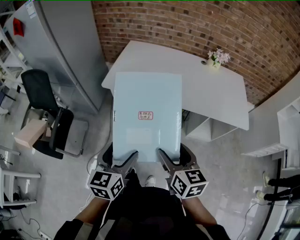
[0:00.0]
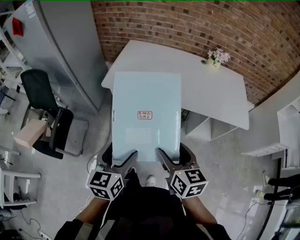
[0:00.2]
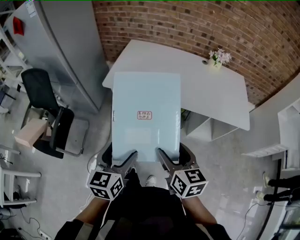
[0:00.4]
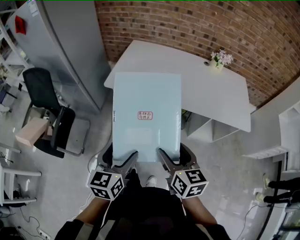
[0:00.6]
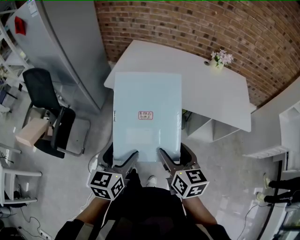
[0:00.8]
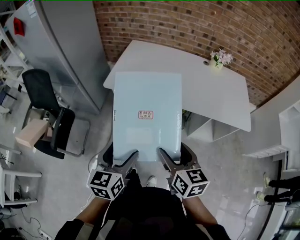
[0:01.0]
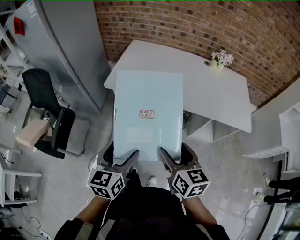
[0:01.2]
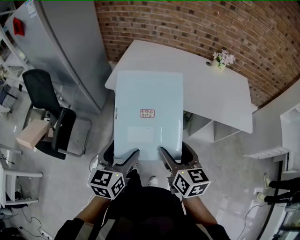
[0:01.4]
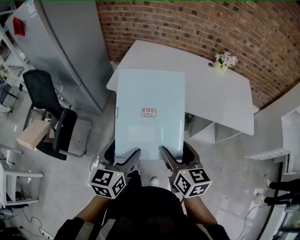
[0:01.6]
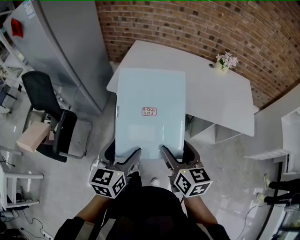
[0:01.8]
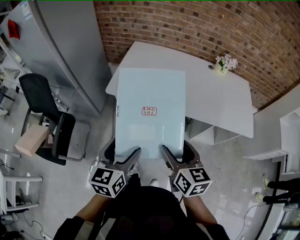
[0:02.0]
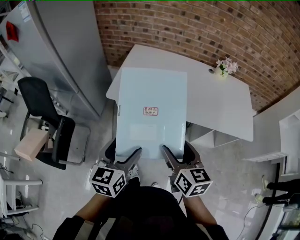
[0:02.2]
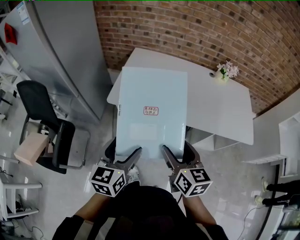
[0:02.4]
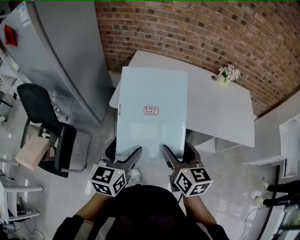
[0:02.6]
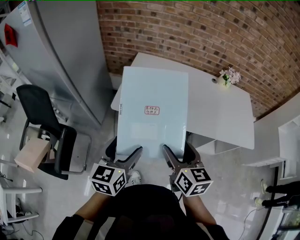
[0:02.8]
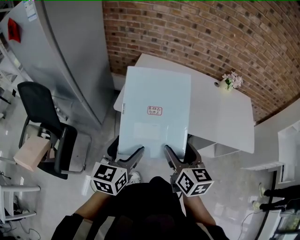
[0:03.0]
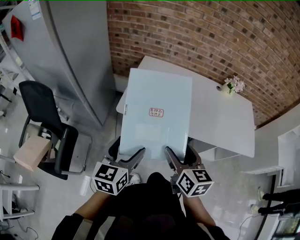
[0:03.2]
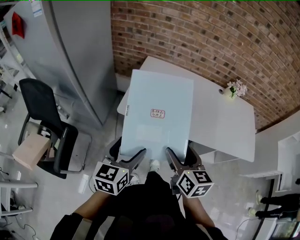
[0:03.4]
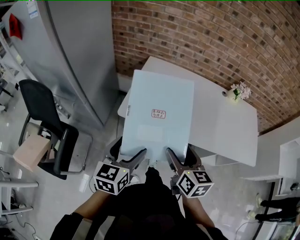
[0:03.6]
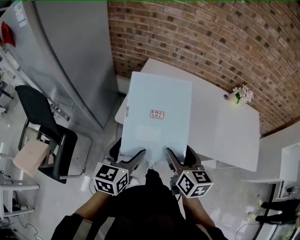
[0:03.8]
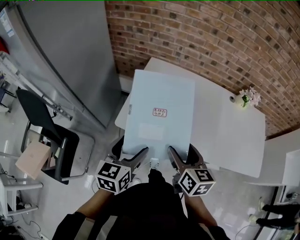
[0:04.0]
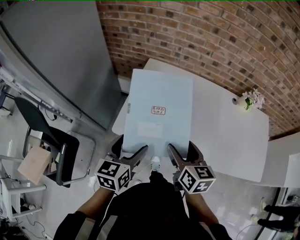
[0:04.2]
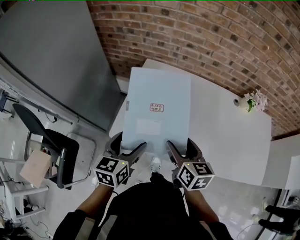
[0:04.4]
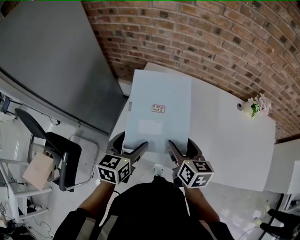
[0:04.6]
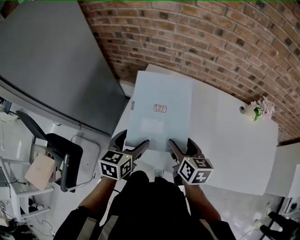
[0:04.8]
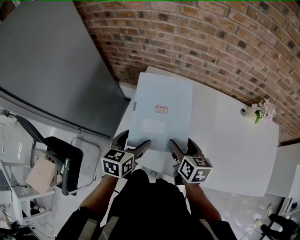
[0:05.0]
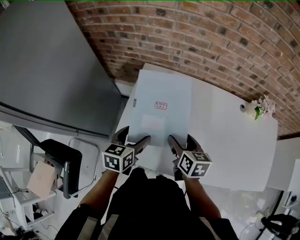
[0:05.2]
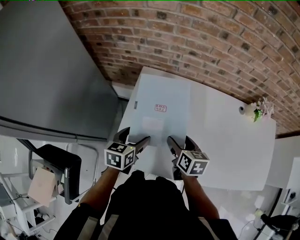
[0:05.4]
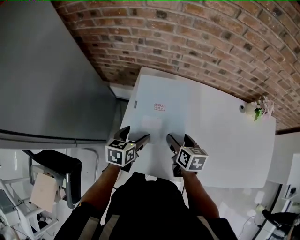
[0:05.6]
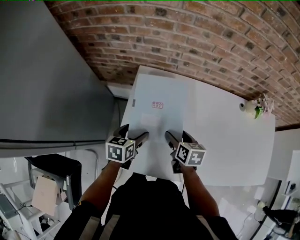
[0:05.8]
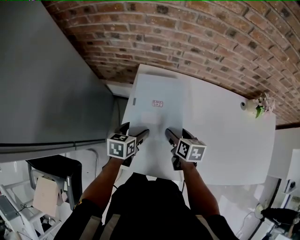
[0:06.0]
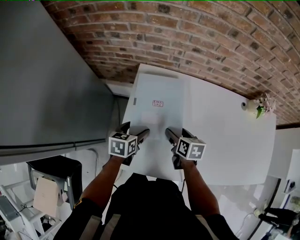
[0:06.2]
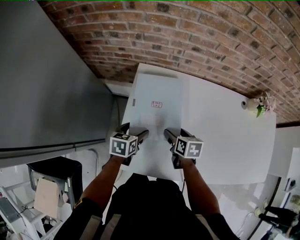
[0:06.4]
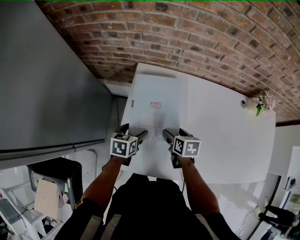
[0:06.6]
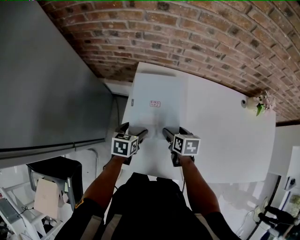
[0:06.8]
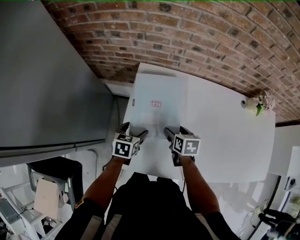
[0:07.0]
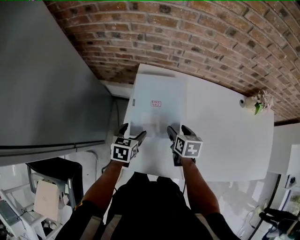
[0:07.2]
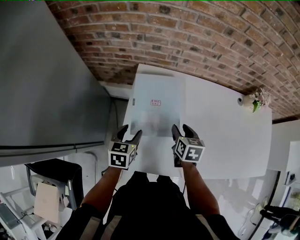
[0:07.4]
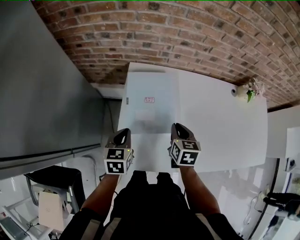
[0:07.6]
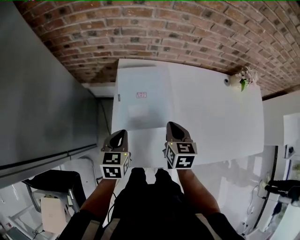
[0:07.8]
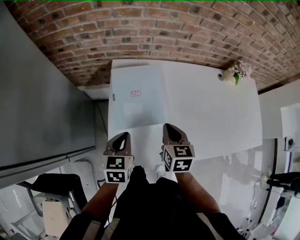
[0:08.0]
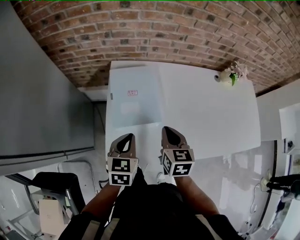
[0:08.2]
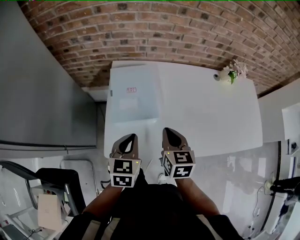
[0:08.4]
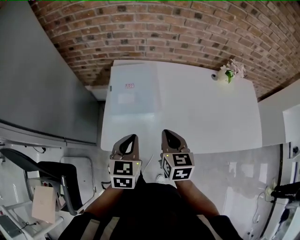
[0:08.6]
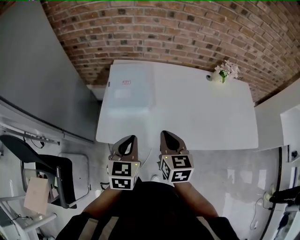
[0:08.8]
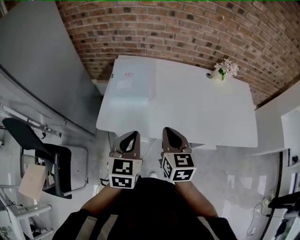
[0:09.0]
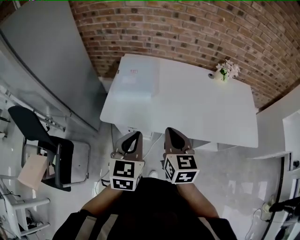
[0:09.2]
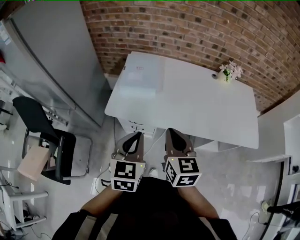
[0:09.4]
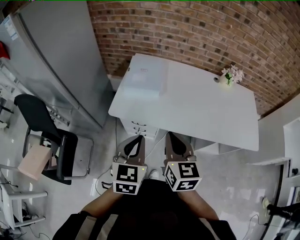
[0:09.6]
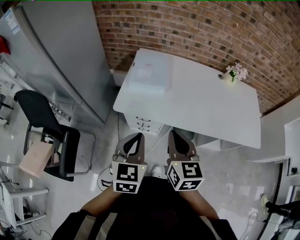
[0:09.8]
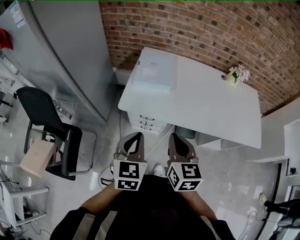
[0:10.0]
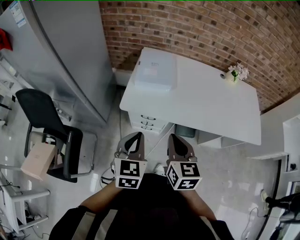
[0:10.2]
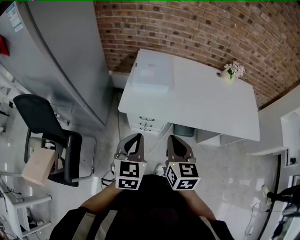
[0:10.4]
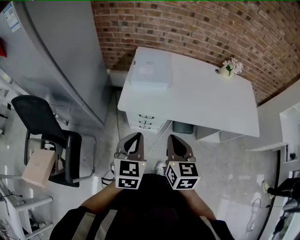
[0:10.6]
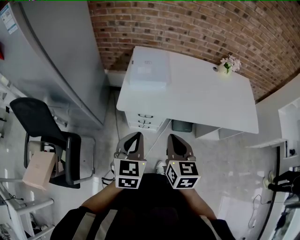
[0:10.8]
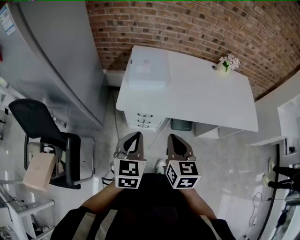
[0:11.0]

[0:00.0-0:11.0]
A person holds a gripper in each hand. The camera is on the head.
0:00.0 to 0:01.6: The grippers move only a little.
0:01.6 to 0:03.2: The grippers both shift forward and to the left by some 20 cm.
0:03.2 to 0:04.8: Both grippers move forward, some 30 cm.
0:04.8 to 0:06.2: The two grippers go some 20 cm downward and forward.
0:06.2 to 0:07.8: The left gripper heads upward and backward, covering about 10 cm, and closes its fingers. The right gripper is displaced upward by some 10 cm, rotates about 20 degrees, and closes its fingers.
0:07.8 to 0:09.4: The right gripper goes roughly 35 cm backward and upward, and rotates some 20 degrees; the left gripper shifts some 40 cm backward, to the right and upward, and changes its angle by approximately 20 degrees.
0:09.4 to 0:11.0: The left gripper travels to the left by approximately 10 cm; the right gripper heads to the left and backward, covering approximately 10 cm.

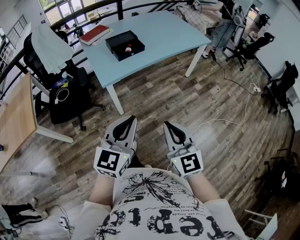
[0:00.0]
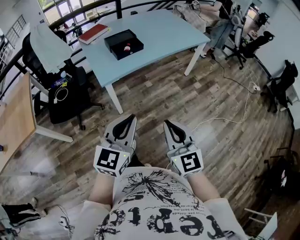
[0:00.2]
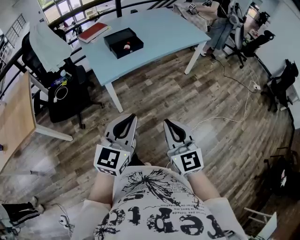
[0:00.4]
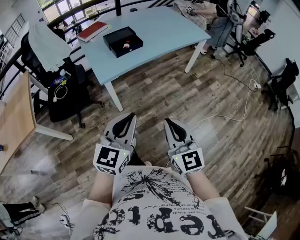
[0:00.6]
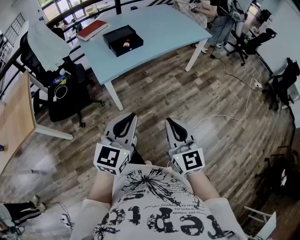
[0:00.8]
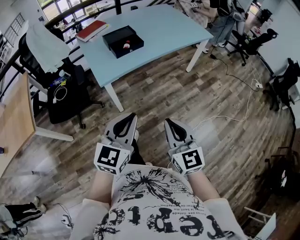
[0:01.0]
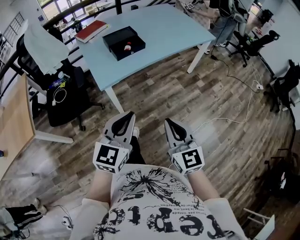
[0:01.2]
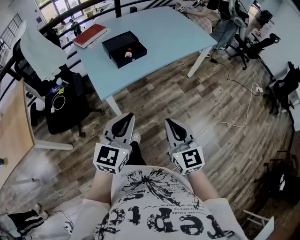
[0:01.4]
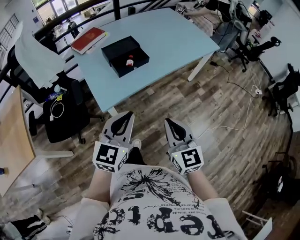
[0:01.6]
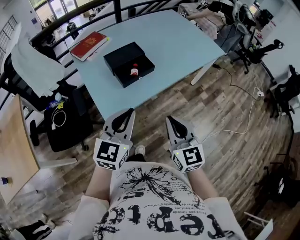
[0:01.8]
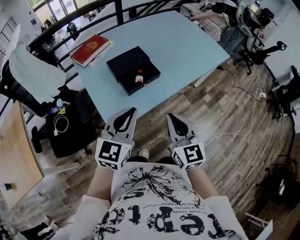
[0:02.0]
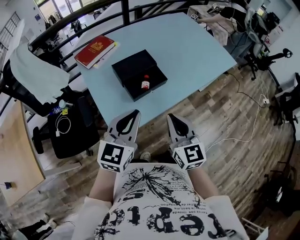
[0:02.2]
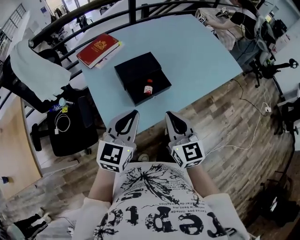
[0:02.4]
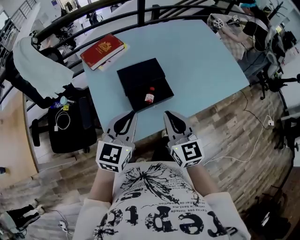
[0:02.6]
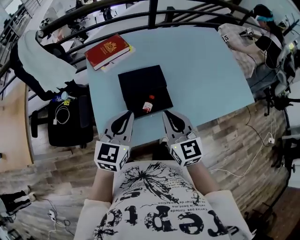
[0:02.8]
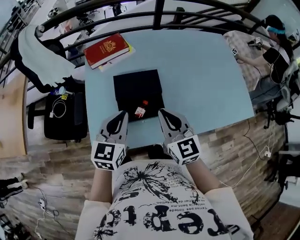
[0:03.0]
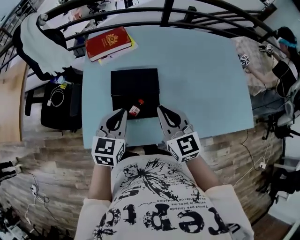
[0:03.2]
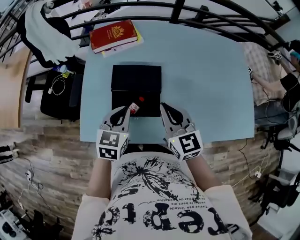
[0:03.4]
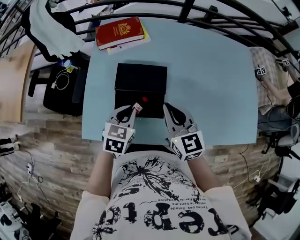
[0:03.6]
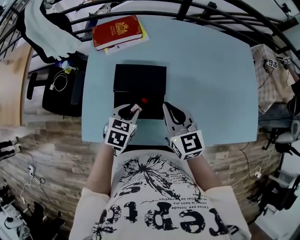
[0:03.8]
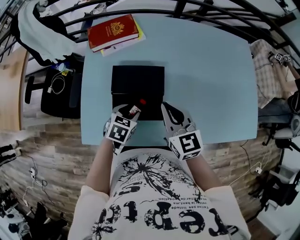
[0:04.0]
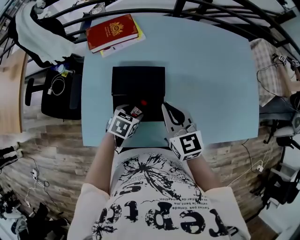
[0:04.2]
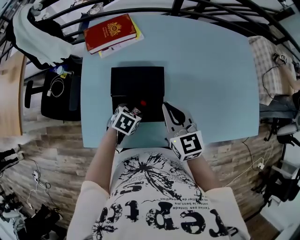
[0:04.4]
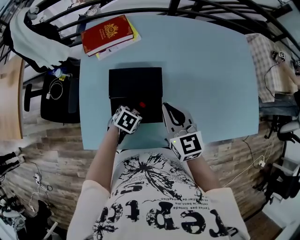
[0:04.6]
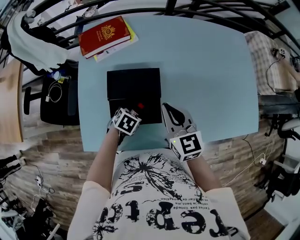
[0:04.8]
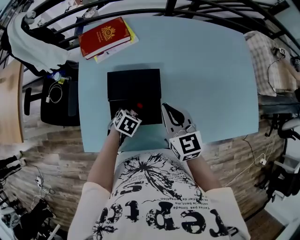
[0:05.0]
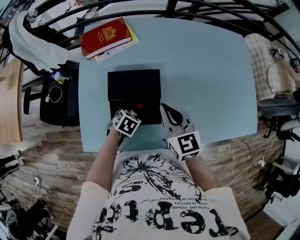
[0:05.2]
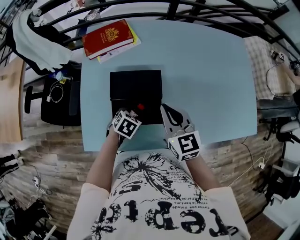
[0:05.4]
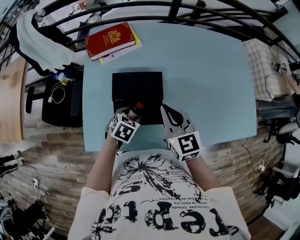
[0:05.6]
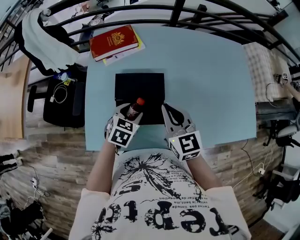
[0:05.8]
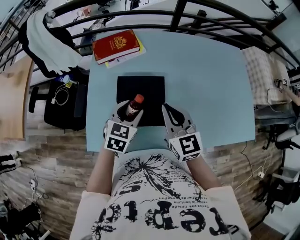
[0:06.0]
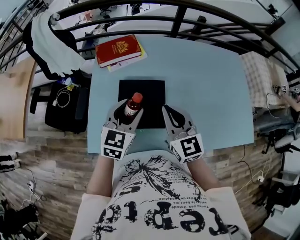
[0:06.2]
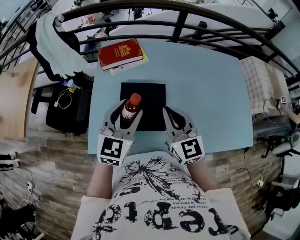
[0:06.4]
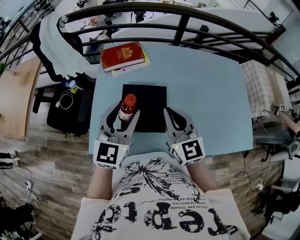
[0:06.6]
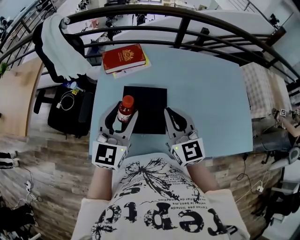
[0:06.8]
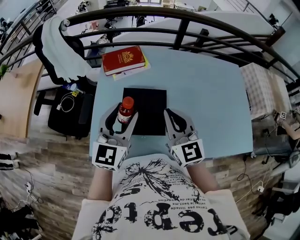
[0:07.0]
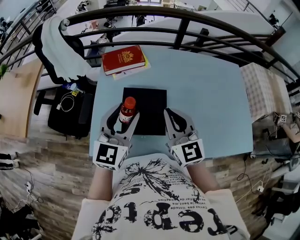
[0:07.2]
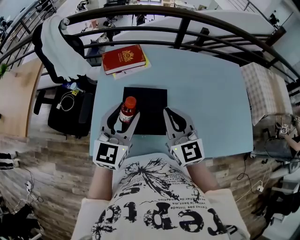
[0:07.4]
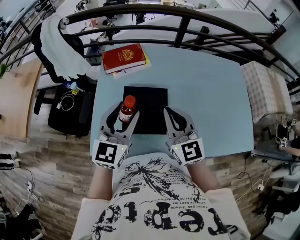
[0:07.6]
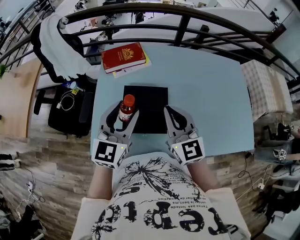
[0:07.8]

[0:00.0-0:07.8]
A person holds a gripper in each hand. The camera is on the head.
0:00.0 to 0:01.6: Both grippers travel together forward, some 25 cm.
0:01.6 to 0:03.2: The pair of grippers is taken about 40 cm. The right gripper changes its angle by approximately 30 degrees, while the left gripper rotates approximately 40 degrees.
0:03.2 to 0:04.6: The right gripper moves forward, approximately 5 cm, while the left gripper shifts approximately 20 cm downward, tips its fingers downward by about 40 degrees, and opens up.
0:04.6 to 0:06.2: The left gripper is displaced upward by some 25 cm, and angles its fingers upward, by some 40 degrees. Meanwhile the right gripper moves upward, some 10 cm.
0:06.2 to 0:07.8: The left gripper heads upward, covering some 10 cm.

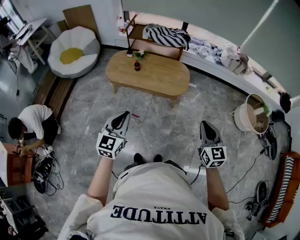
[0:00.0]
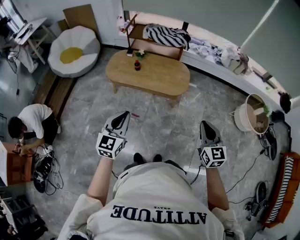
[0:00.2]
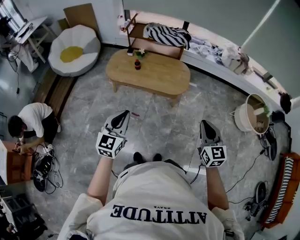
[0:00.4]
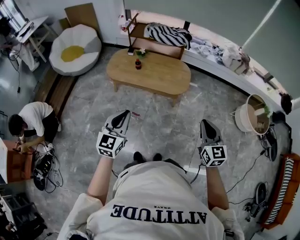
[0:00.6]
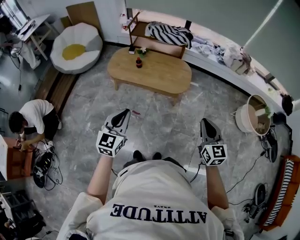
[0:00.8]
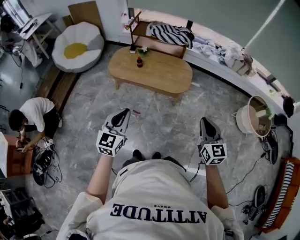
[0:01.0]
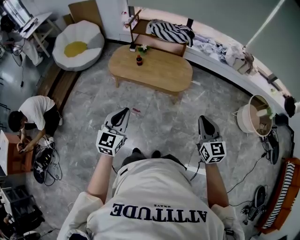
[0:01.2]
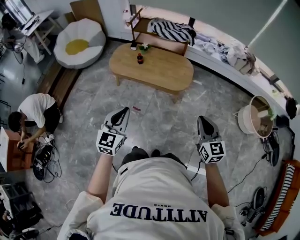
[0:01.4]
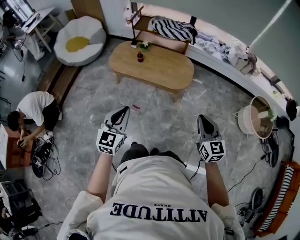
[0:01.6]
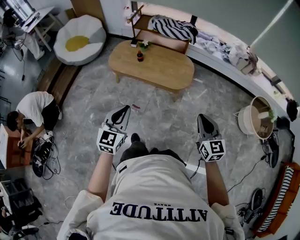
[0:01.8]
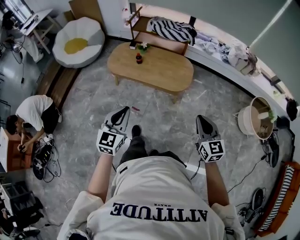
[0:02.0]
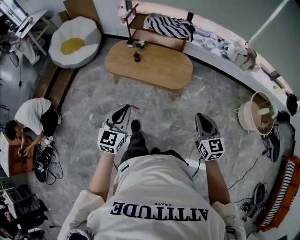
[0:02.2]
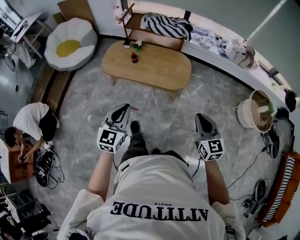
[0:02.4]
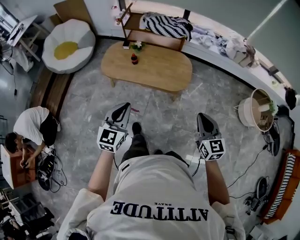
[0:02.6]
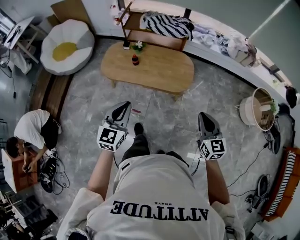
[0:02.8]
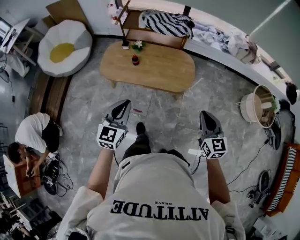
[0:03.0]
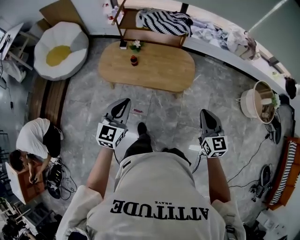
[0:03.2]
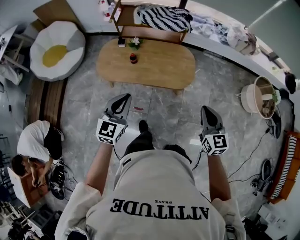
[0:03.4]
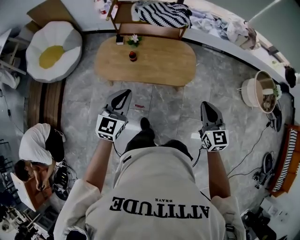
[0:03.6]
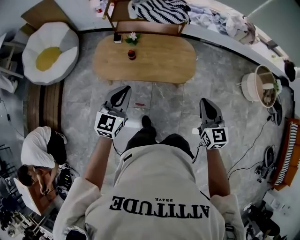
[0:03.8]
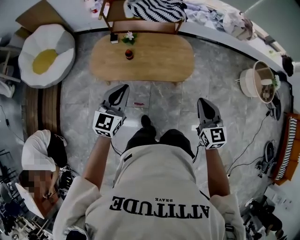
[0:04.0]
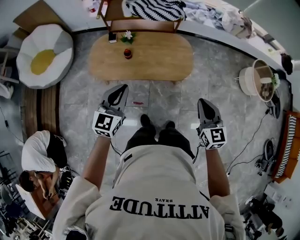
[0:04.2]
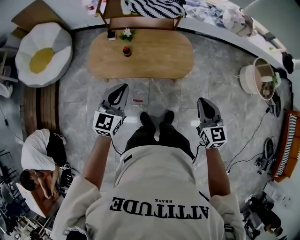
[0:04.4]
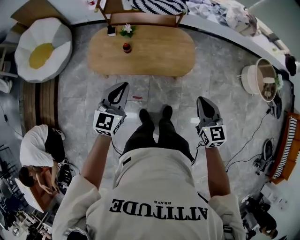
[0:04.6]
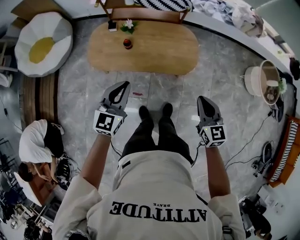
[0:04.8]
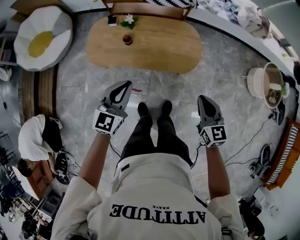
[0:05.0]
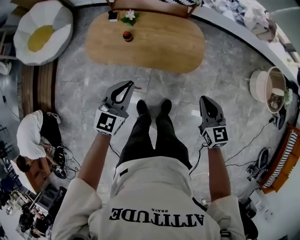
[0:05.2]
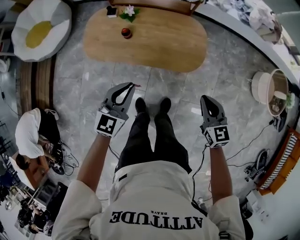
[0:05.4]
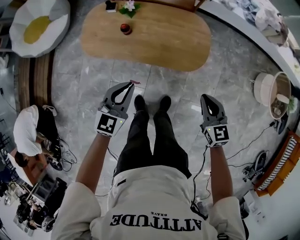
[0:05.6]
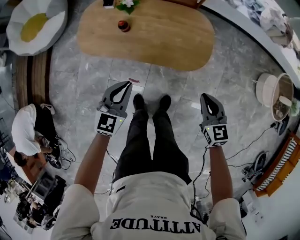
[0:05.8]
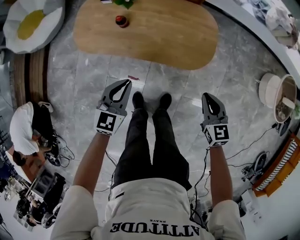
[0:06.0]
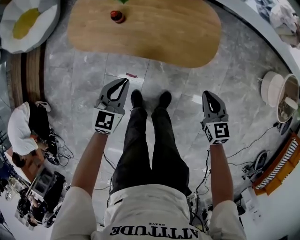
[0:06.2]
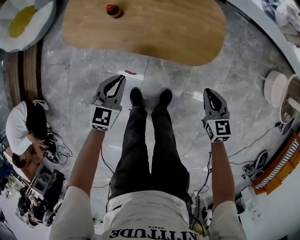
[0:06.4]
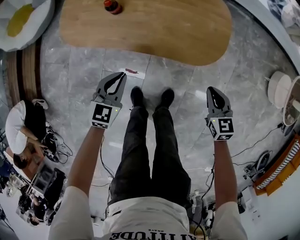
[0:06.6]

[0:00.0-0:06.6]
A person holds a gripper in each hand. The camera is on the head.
0:00.0 to 0:01.6: The right gripper ends up some 5 cm from where it was. The left gripper goes roughly 5 cm to the right.
0:01.6 to 0:03.2: Both grippers travel together forward and to the left, some 25 cm.
0:03.2 to 0:05.0: The two grippers go approximately 15 cm forward and downward.
0:05.0 to 0:06.6: Both grippers move downward, approximately 35 cm. The left gripper swivels some 20 degrees.
